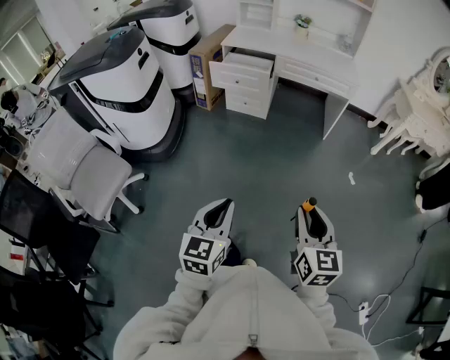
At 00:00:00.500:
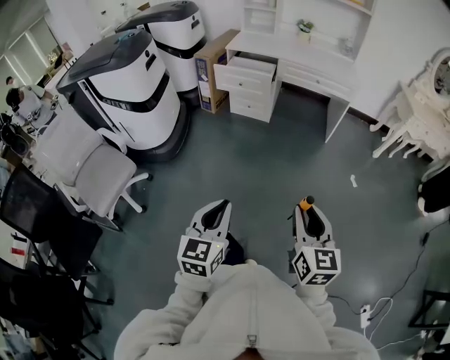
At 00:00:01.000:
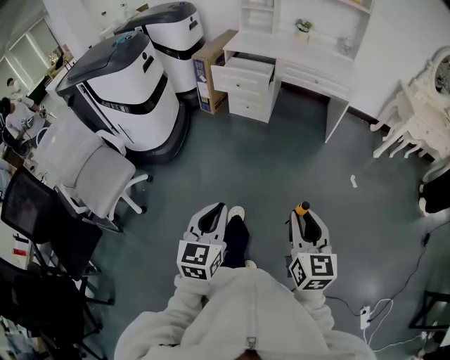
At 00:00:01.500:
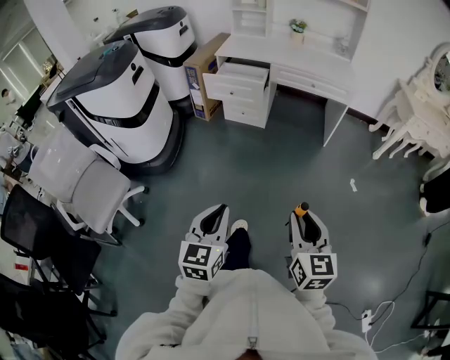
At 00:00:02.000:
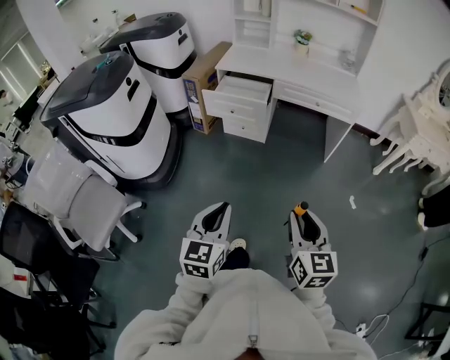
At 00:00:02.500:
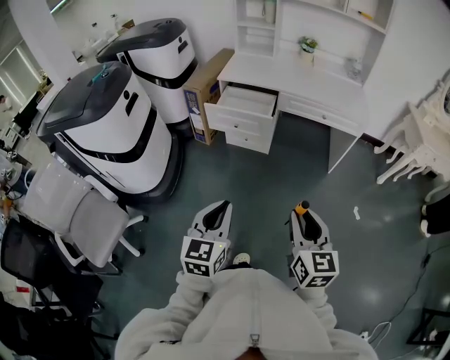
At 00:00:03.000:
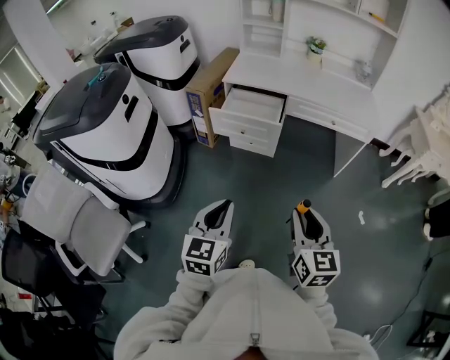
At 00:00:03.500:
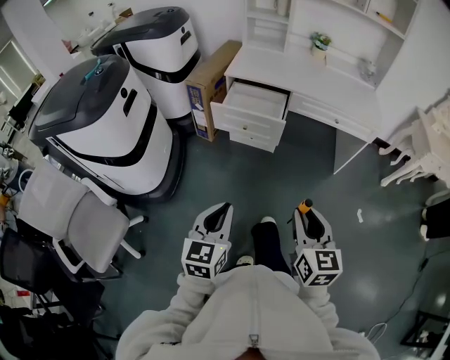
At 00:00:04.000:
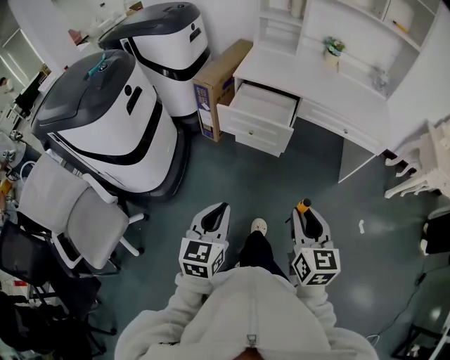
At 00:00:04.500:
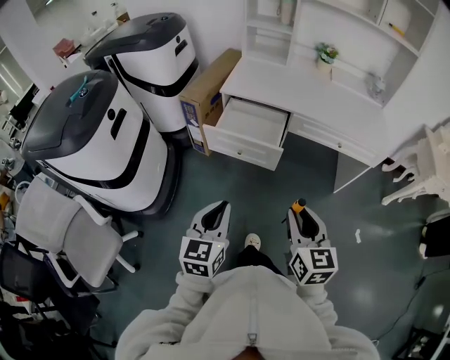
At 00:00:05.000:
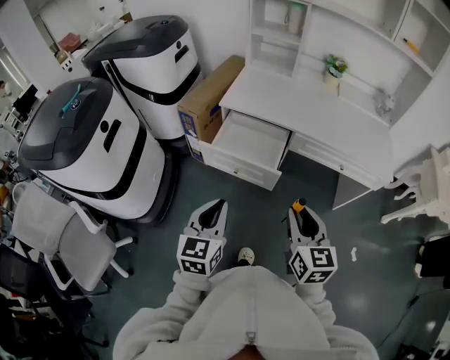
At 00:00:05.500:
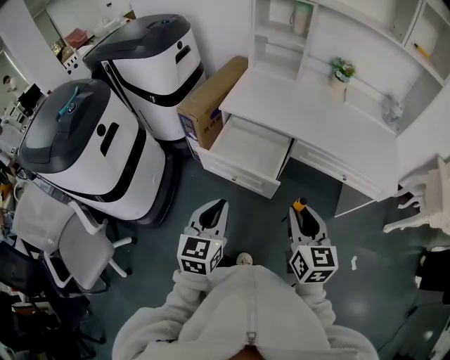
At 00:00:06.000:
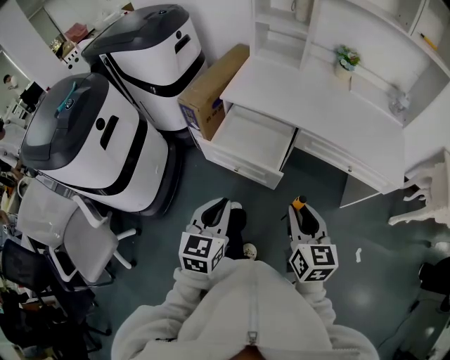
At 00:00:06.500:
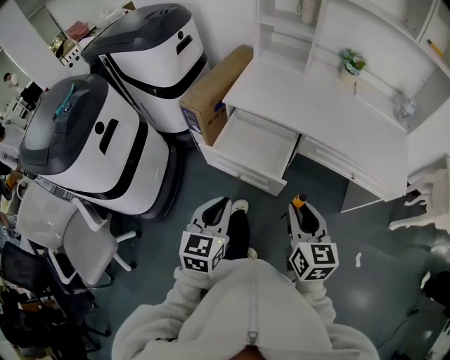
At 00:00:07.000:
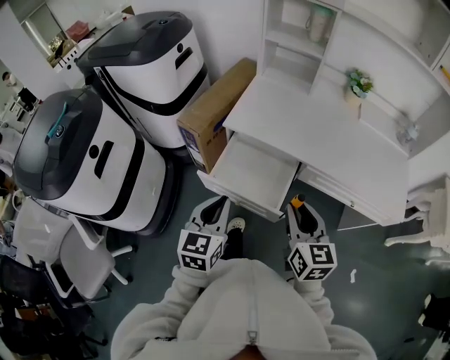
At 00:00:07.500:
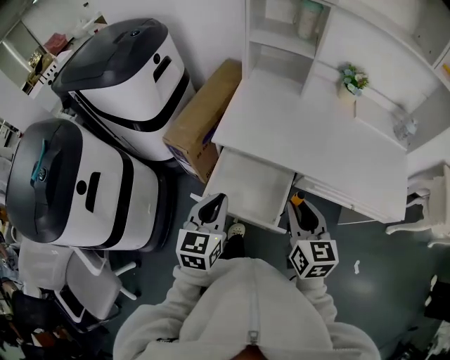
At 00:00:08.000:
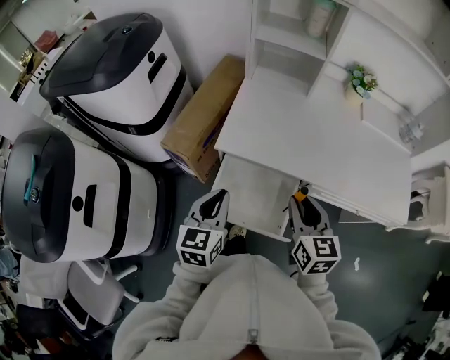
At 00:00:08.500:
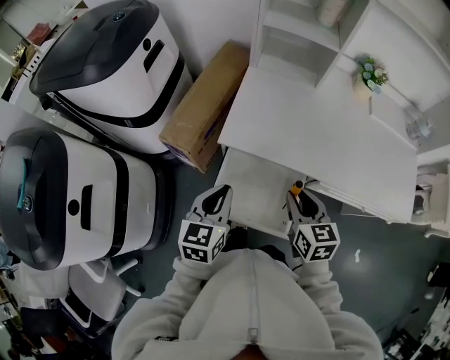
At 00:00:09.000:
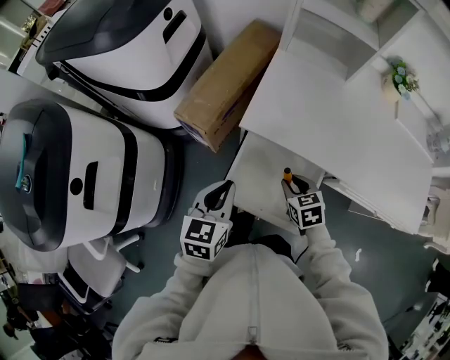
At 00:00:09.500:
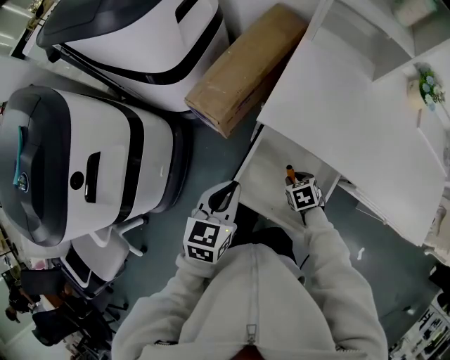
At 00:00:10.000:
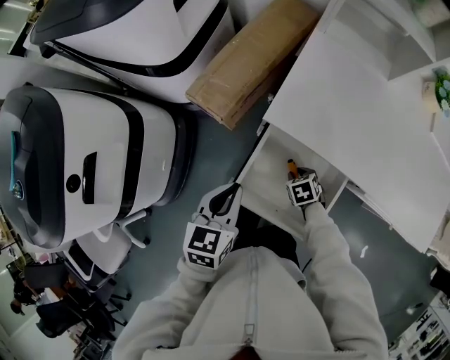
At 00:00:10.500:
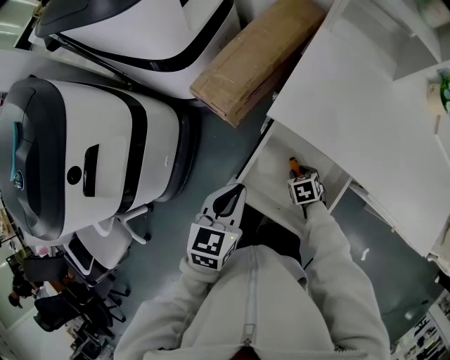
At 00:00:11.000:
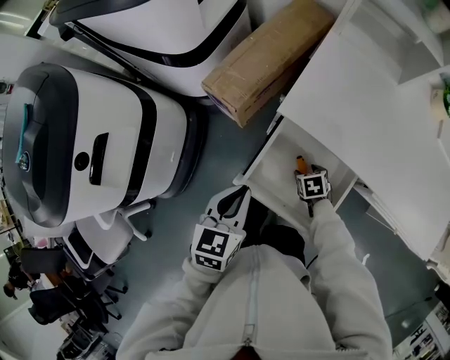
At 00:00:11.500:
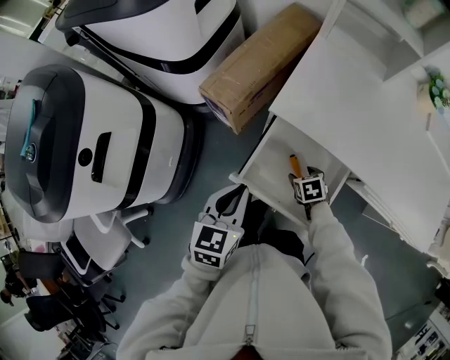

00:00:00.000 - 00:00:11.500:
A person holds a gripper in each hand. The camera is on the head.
00:00:00.000 - 00:00:02.000: The grippers both shift forward by about 15 cm.
00:00:02.000 - 00:00:04.000: Both grippers travel together forward and to the left, roughly 20 cm.
00:00:04.000 - 00:00:06.000: The two grippers go approximately 25 cm forward.
00:00:06.000 - 00:00:07.500: The grippers both shift forward by some 20 cm.
00:00:07.500 - 00:00:09.500: The right gripper heads downward, covering roughly 35 cm, and angles its fingers downward, by approximately 50 degrees. Meanwhile the left gripper is displaced downward, to the left and forward by roughly 15 cm.
00:00:09.500 - 00:00:11.500: The right gripper opens up.

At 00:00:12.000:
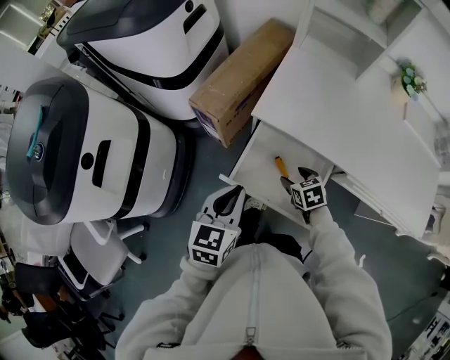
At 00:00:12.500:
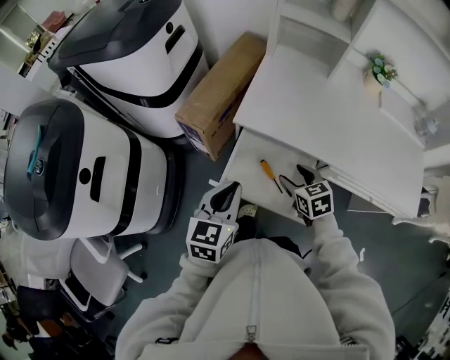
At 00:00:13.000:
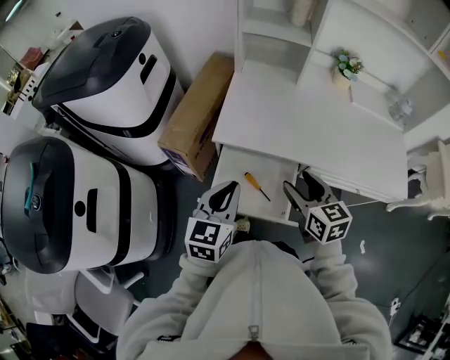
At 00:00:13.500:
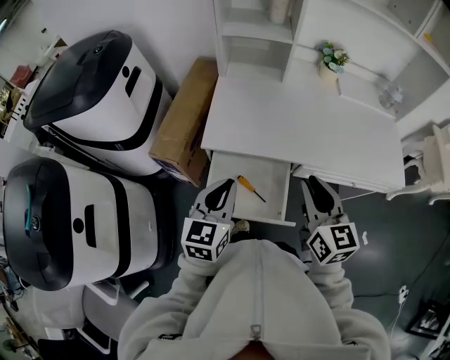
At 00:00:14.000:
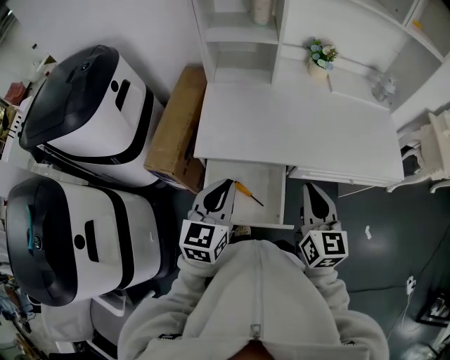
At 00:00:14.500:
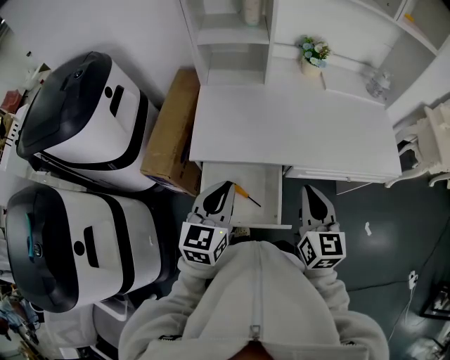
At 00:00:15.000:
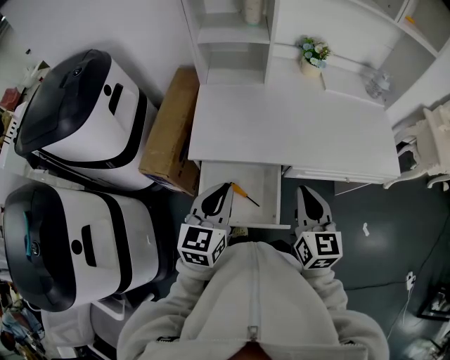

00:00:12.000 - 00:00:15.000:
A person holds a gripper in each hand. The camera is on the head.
00:00:12.000 - 00:00:13.500: The right gripper goes about 30 cm upward, points its fingers approximately 40 degrees further upward, and closes its fingers, while the left gripper ends up about 10 cm from where it was, and changes its angle by roughly 20 degrees.
00:00:13.500 - 00:00:15.000: The grippers stay close to where they were, moving slightly.

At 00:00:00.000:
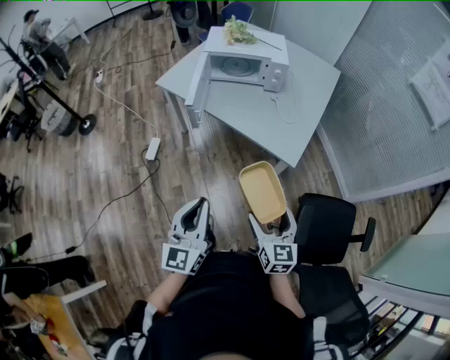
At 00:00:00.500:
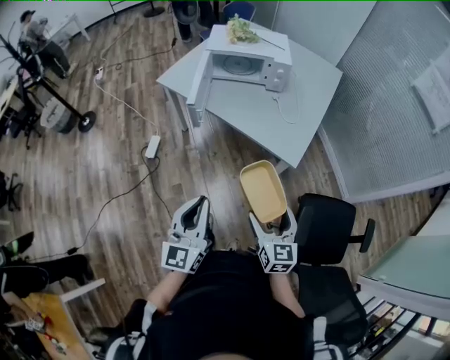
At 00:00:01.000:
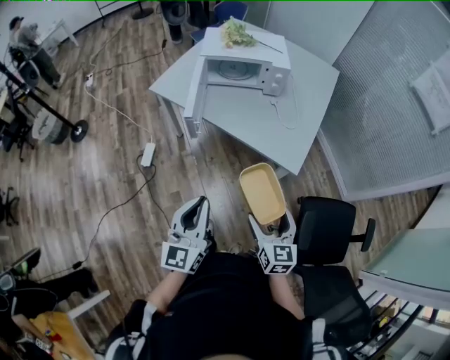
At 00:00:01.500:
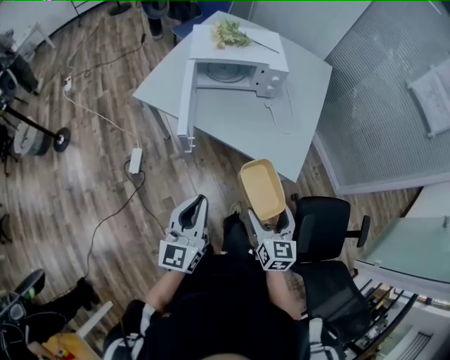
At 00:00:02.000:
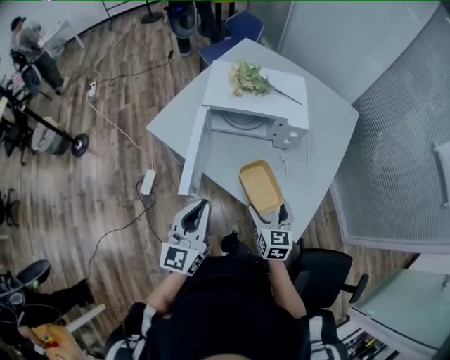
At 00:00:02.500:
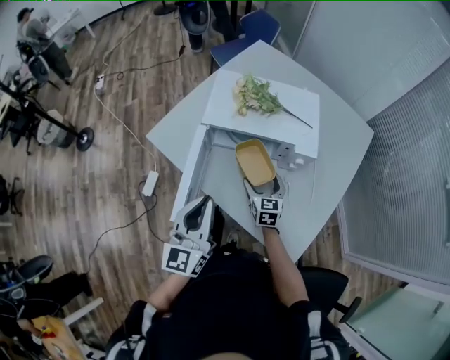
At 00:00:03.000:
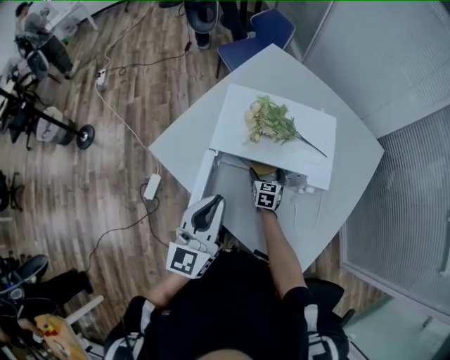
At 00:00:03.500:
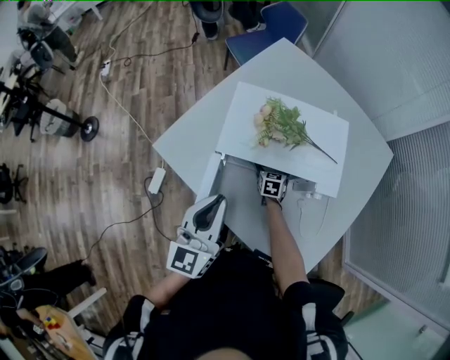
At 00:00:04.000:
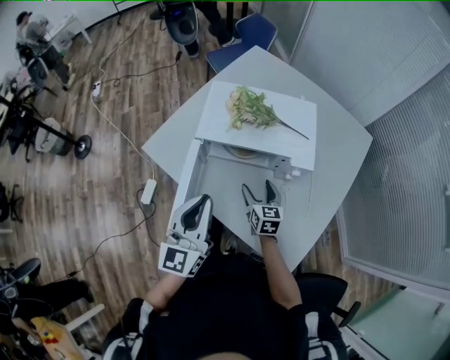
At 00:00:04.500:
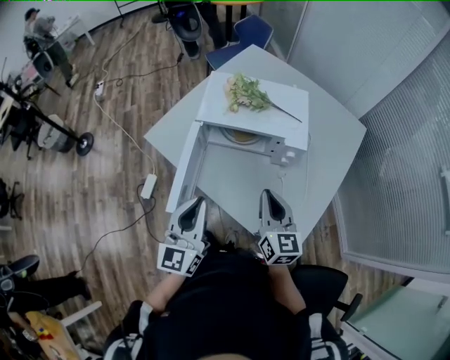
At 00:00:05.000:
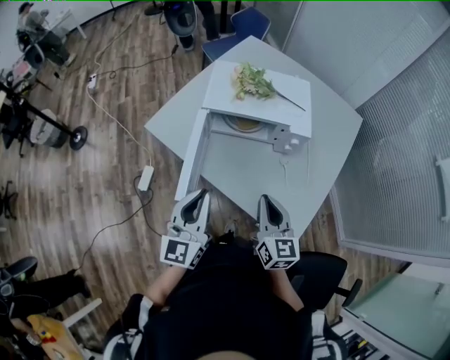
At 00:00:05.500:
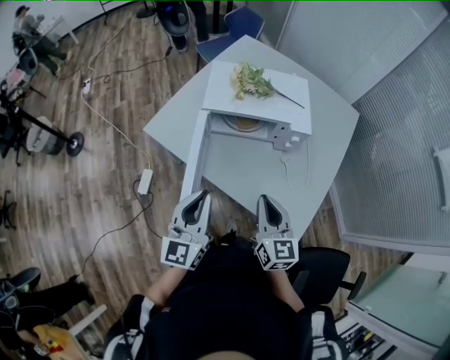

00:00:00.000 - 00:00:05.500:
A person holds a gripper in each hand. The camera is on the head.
00:00:00.000 - 00:00:02.000: The grippers both shift forward by about 40 cm.
00:00:02.000 - 00:00:03.500: The right gripper shifts some 50 cm forward and downward. The left gripper goes some 25 cm forward.
00:00:03.500 - 00:00:05.500: The right gripper travels backward and upward by approximately 50 cm, points its fingers roughly 30 degrees further upward, and closes its fingers; the left gripper goes some 20 cm backward.

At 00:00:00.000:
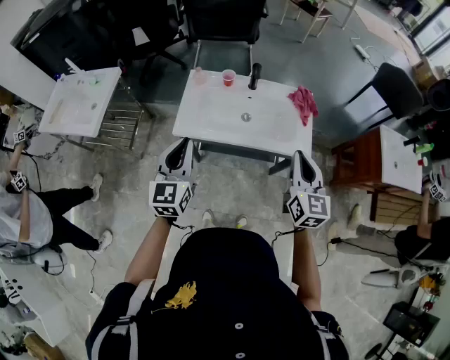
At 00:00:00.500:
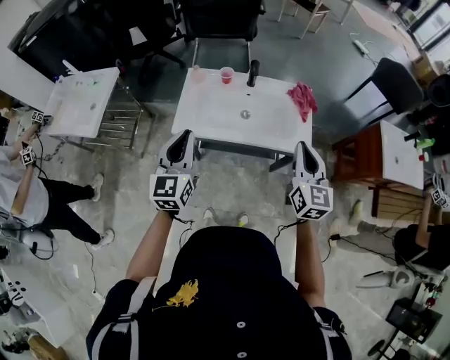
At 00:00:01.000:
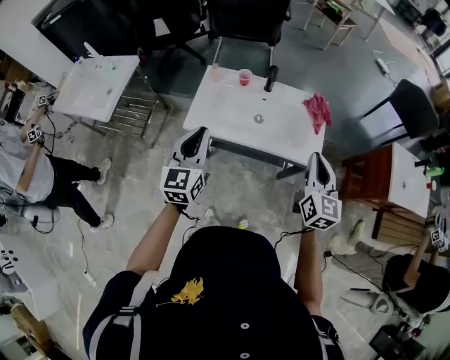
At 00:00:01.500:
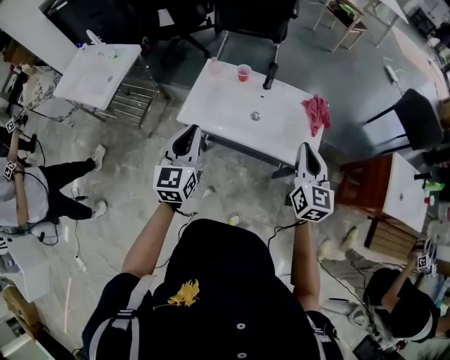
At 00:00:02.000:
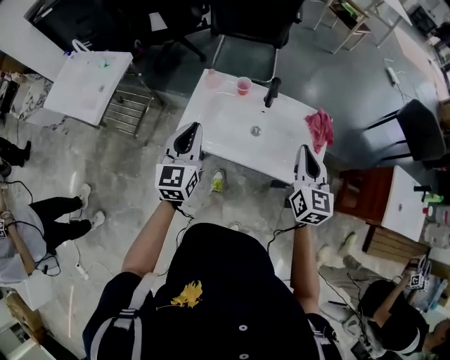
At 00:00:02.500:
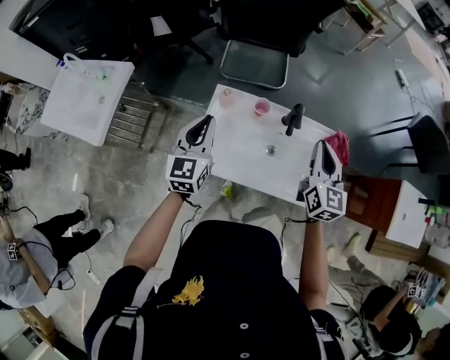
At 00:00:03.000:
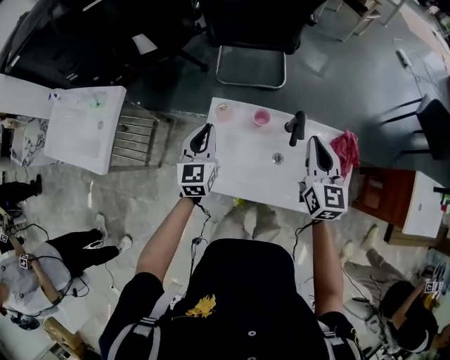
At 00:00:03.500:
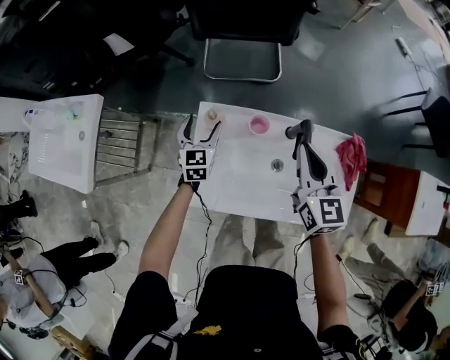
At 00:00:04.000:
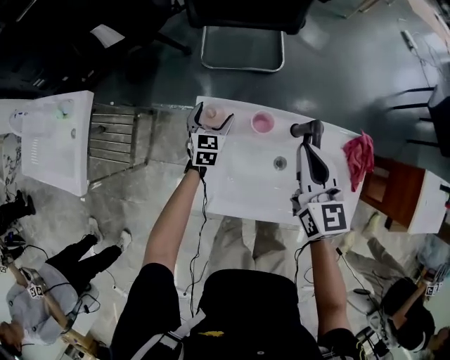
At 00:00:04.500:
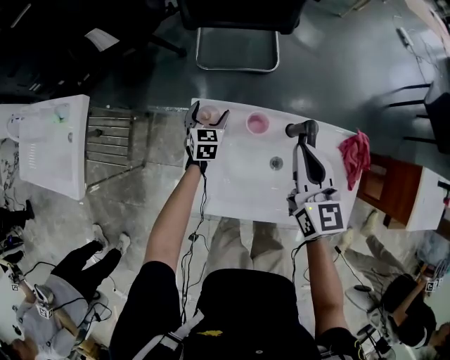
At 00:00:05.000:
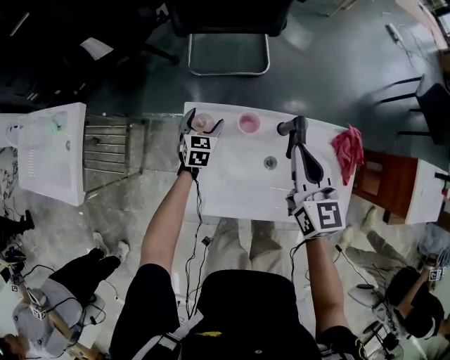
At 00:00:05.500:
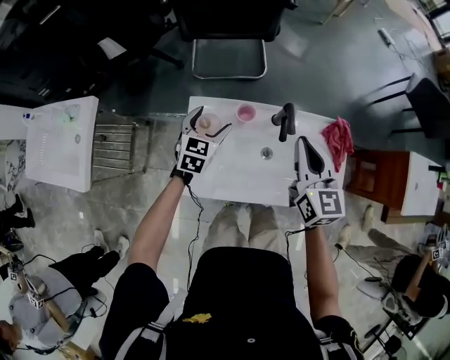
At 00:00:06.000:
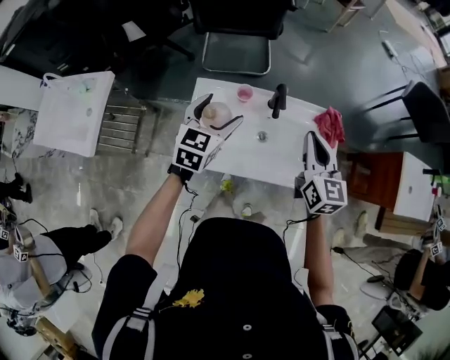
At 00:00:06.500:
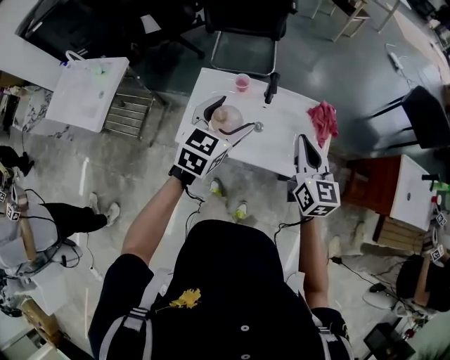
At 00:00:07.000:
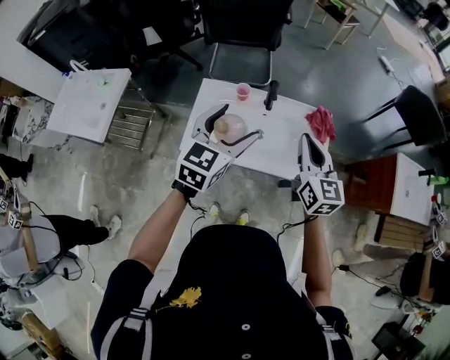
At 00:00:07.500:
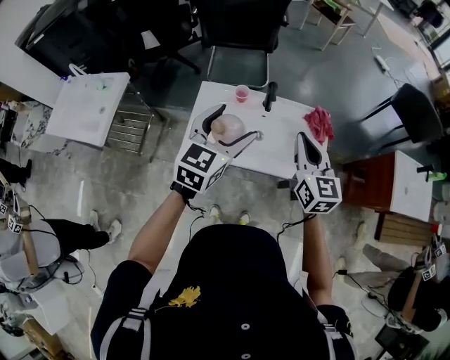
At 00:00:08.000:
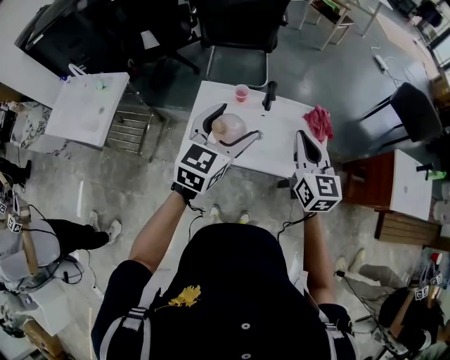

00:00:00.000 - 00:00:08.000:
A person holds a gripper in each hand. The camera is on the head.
00:00:00.000 - 00:00:02.000: The two grippers go approximately 15 cm forward.
00:00:02.000 - 00:00:04.000: The left gripper moves forward and downward, some 50 cm, swivels about 30 degrees, and opens its fingers. The right gripper shifts approximately 30 cm forward, to the left and downward.
00:00:04.000 - 00:00:06.000: The right gripper travels backward, to the right and upward by approximately 20 cm. The left gripper moves upward and backward, about 35 cm.
00:00:06.000 - 00:00:08.000: The right gripper travels backward and upward by approximately 15 cm, while the left gripper shifts roughly 20 cm backward, upward and to the right.
